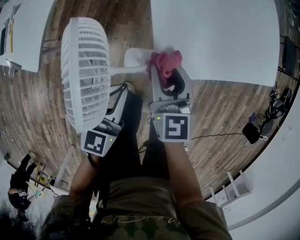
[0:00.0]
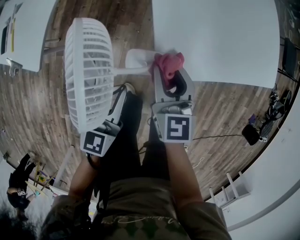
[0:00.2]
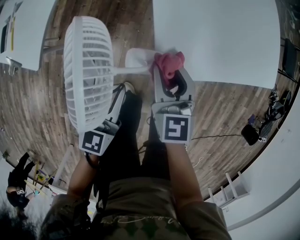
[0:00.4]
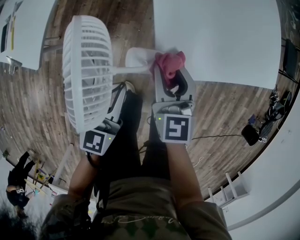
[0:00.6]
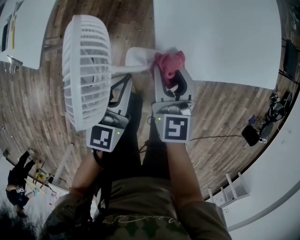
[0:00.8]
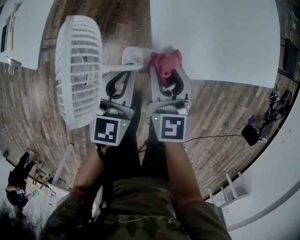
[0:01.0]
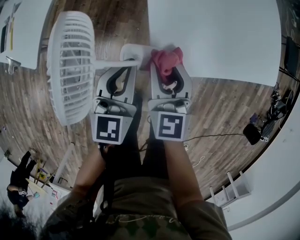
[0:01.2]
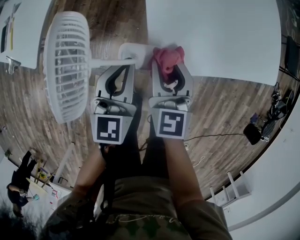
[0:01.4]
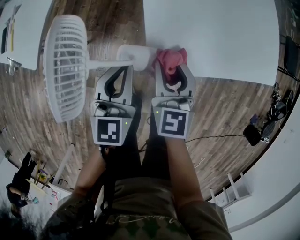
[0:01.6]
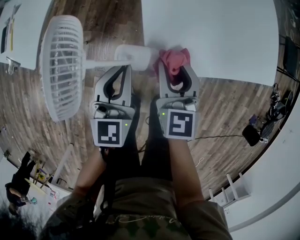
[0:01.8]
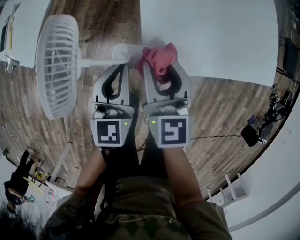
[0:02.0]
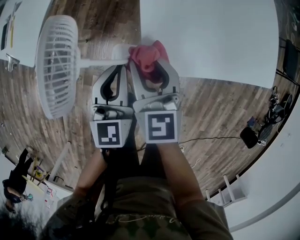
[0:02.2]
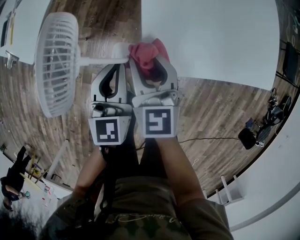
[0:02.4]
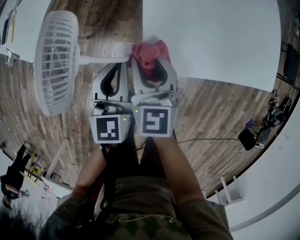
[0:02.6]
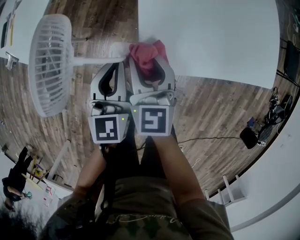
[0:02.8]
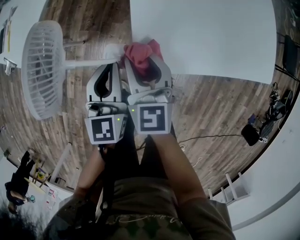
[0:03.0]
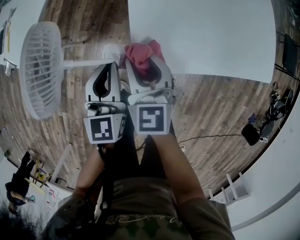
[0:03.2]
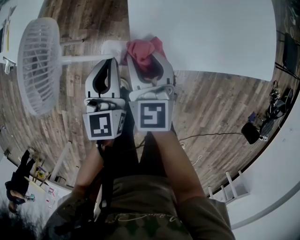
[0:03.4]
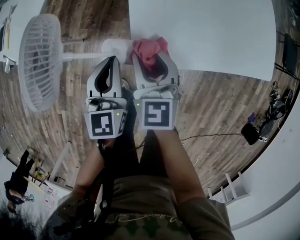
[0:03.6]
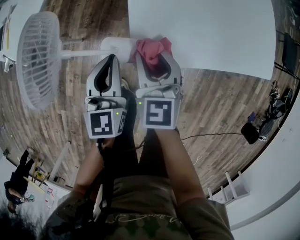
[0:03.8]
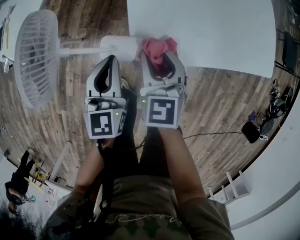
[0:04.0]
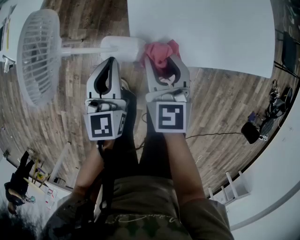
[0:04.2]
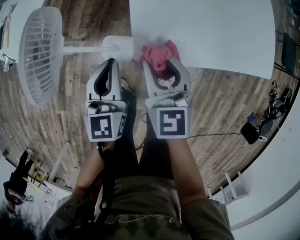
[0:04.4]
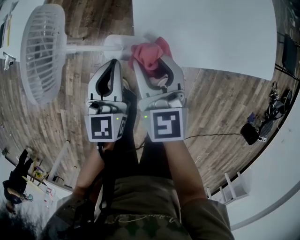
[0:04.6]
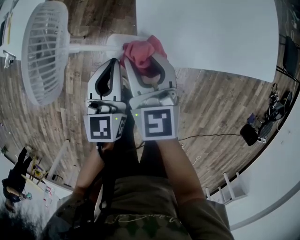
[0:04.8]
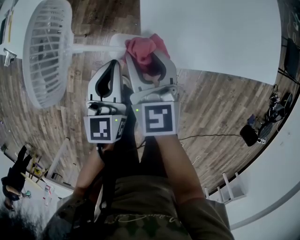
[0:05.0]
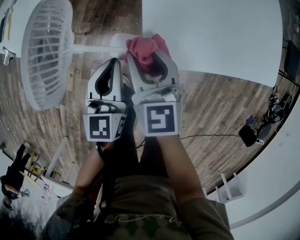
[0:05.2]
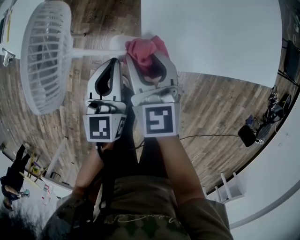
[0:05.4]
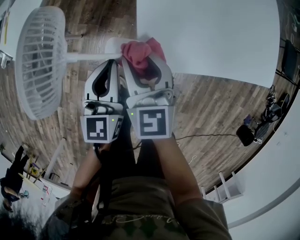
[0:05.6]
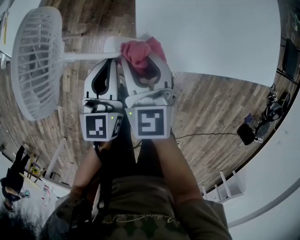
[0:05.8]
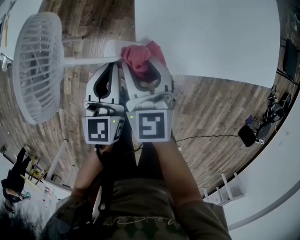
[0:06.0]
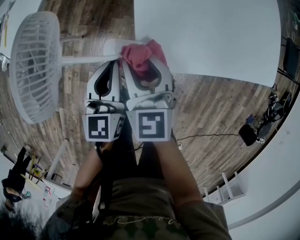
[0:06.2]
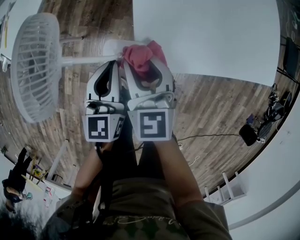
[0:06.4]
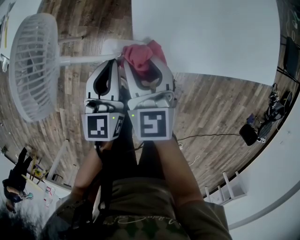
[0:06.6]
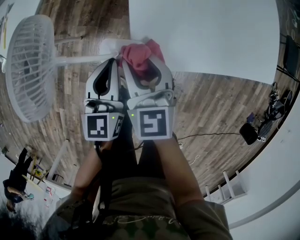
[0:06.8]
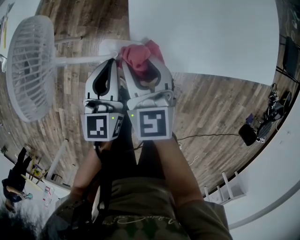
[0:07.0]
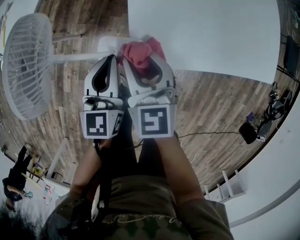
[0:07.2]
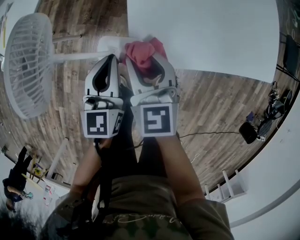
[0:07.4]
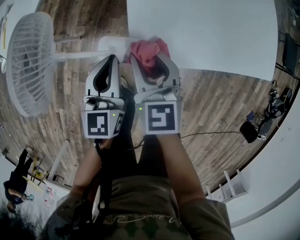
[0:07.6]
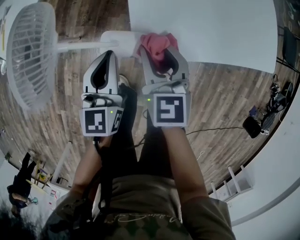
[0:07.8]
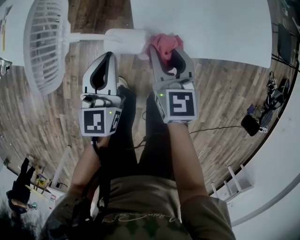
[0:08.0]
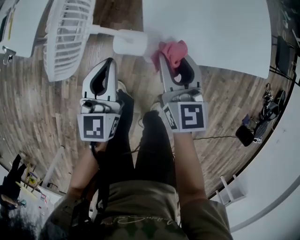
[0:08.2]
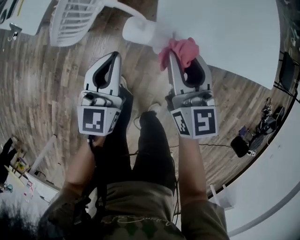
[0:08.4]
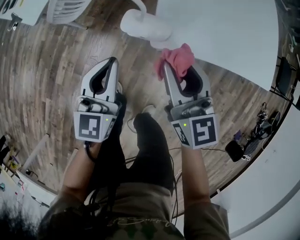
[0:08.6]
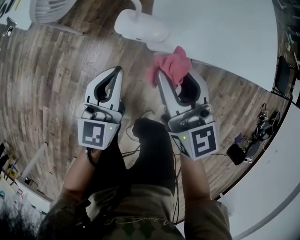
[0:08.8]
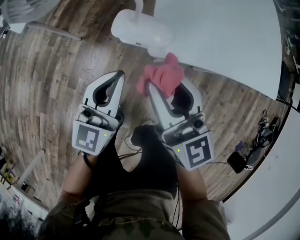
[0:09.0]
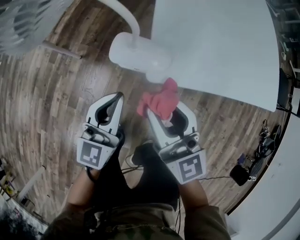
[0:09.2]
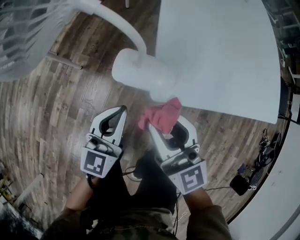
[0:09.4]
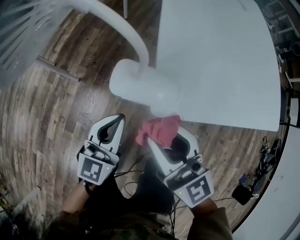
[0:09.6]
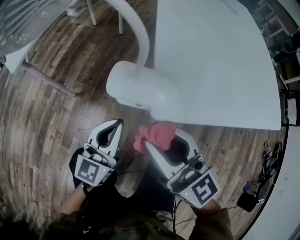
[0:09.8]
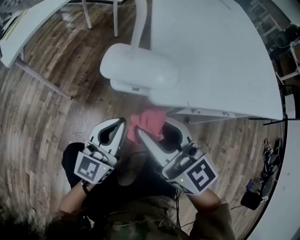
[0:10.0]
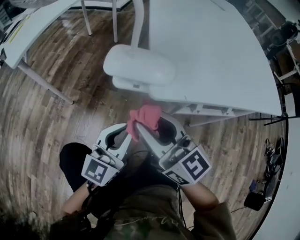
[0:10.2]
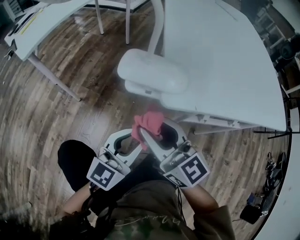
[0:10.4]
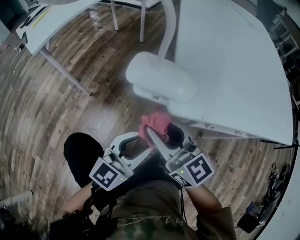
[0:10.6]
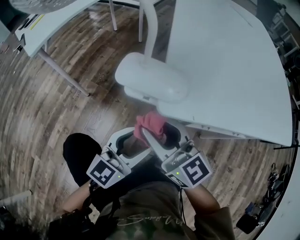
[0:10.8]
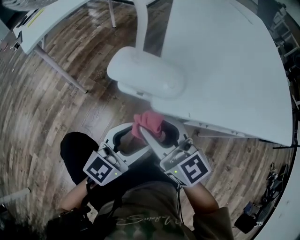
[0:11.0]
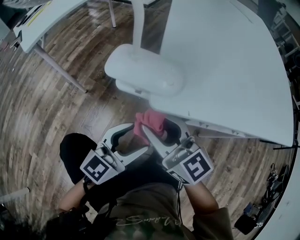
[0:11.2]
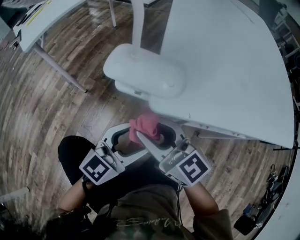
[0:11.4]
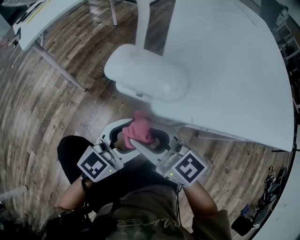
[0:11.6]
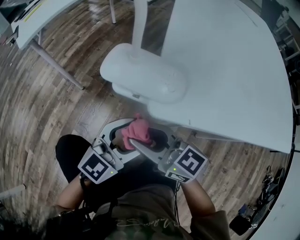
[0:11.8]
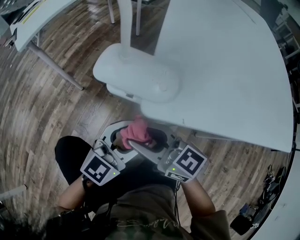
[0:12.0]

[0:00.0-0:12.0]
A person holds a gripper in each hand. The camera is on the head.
0:00.0 to 0:01.6: The left gripper goes approximately 5 cm forward.
0:01.6 to 0:03.0: The right gripper shifts by roughly 5 cm.
0:03.0 to 0:04.4: The right gripper shifts by approximately 5 cm.
0:04.4 to 0:06.0: The right gripper moves to the left, some 5 cm.
0:06.0 to 0:07.6: The grippers make only small movements.
0:07.6 to 0:09.0: Both grippers move backward, roughly 10 cm. The right gripper turns by some 30 degrees.
0:09.0 to 0:10.4: Both grippers move downward, about 15 cm. The left gripper opens up.
0:10.4 to 0:12.0: The left gripper opens its fingers. The right gripper shifts approximately 5 cm downward, and rotates some 30 degrees.

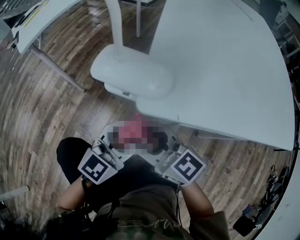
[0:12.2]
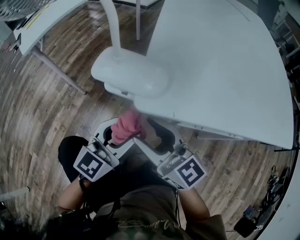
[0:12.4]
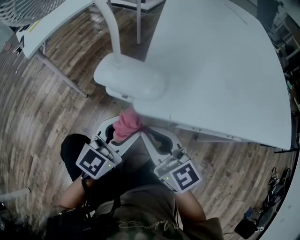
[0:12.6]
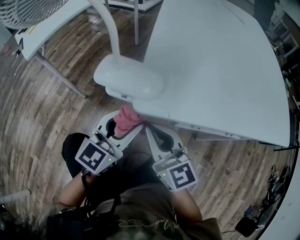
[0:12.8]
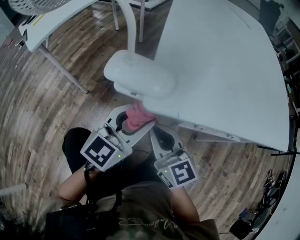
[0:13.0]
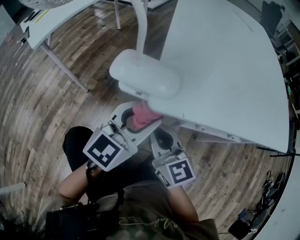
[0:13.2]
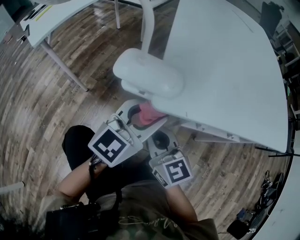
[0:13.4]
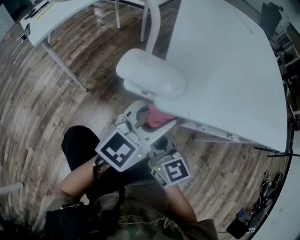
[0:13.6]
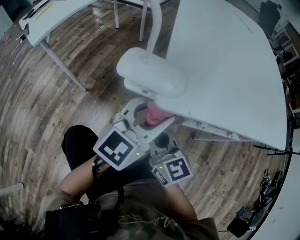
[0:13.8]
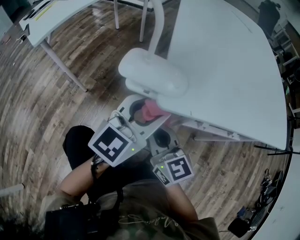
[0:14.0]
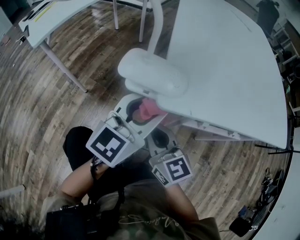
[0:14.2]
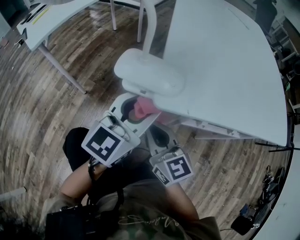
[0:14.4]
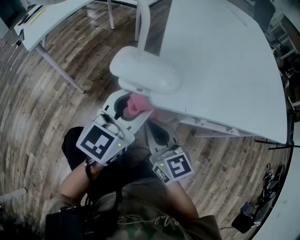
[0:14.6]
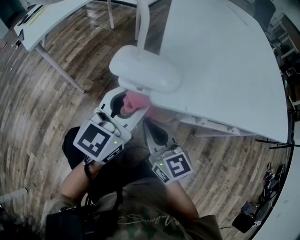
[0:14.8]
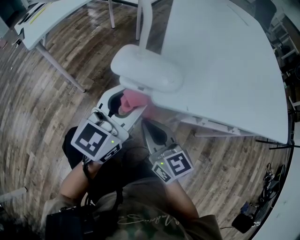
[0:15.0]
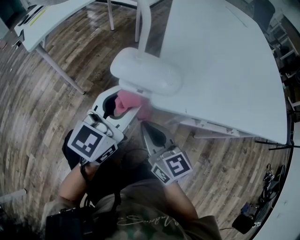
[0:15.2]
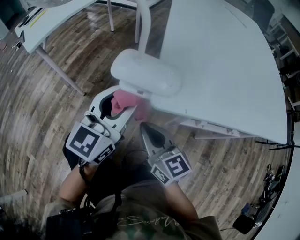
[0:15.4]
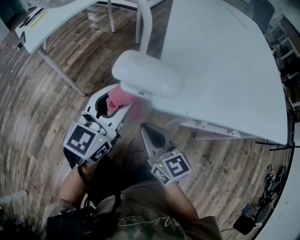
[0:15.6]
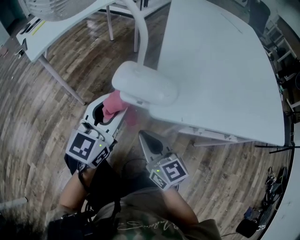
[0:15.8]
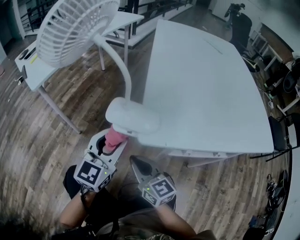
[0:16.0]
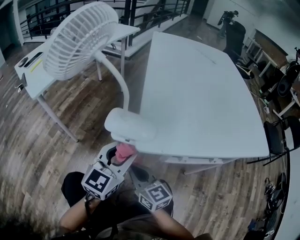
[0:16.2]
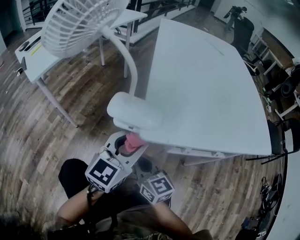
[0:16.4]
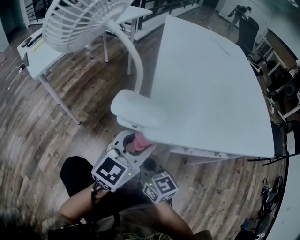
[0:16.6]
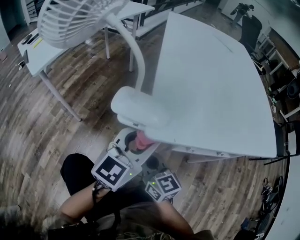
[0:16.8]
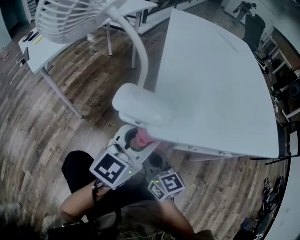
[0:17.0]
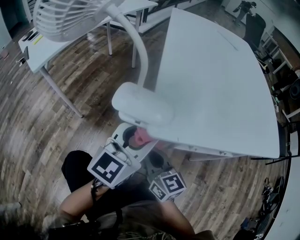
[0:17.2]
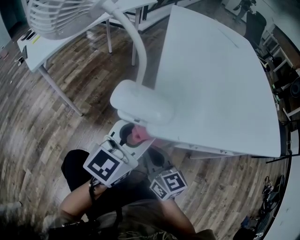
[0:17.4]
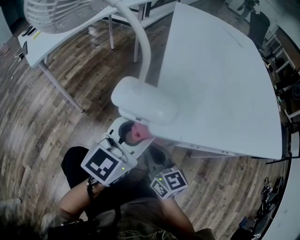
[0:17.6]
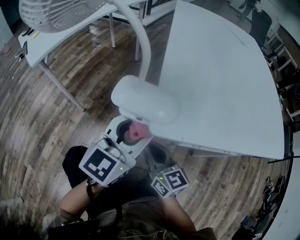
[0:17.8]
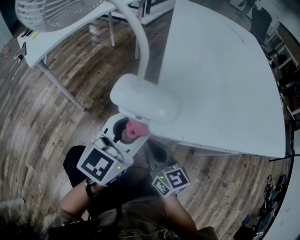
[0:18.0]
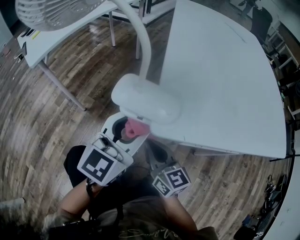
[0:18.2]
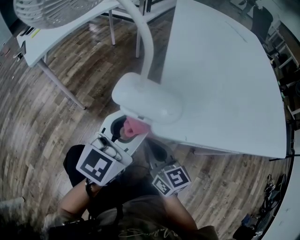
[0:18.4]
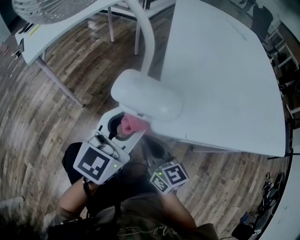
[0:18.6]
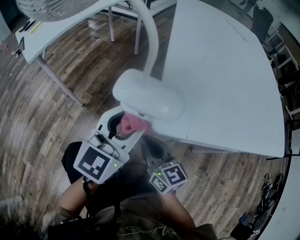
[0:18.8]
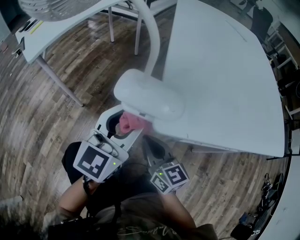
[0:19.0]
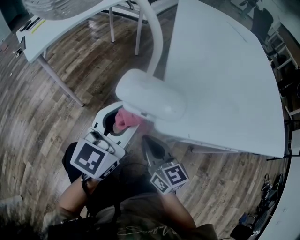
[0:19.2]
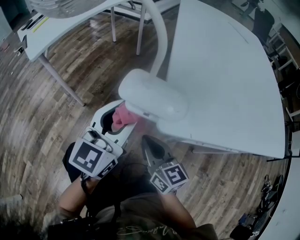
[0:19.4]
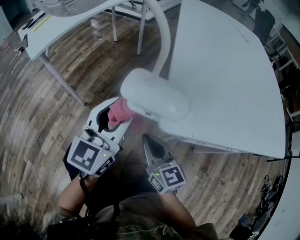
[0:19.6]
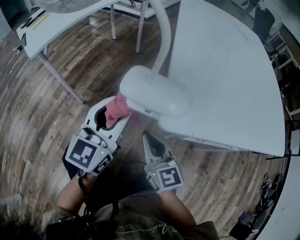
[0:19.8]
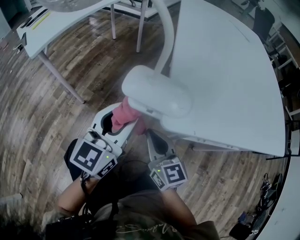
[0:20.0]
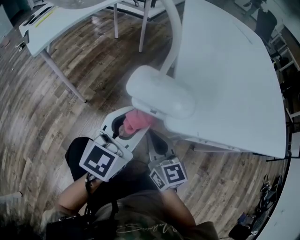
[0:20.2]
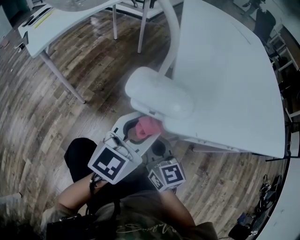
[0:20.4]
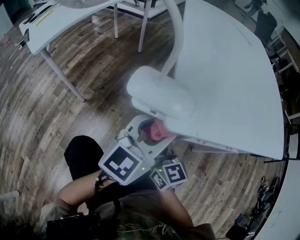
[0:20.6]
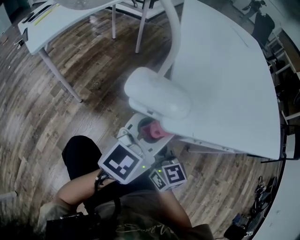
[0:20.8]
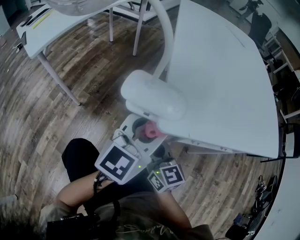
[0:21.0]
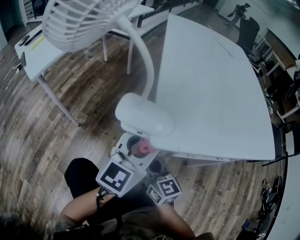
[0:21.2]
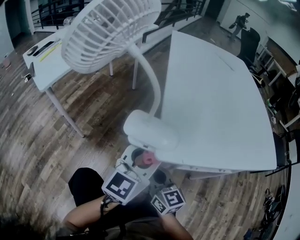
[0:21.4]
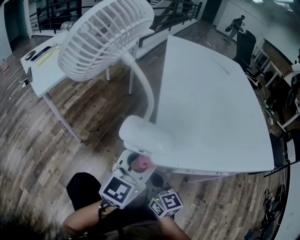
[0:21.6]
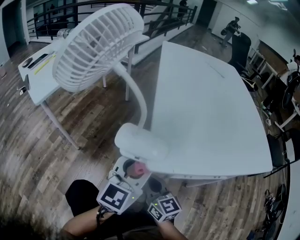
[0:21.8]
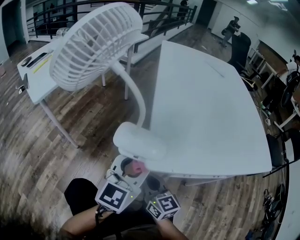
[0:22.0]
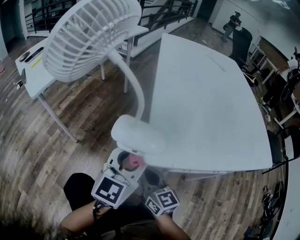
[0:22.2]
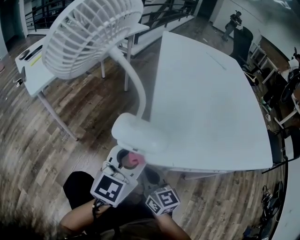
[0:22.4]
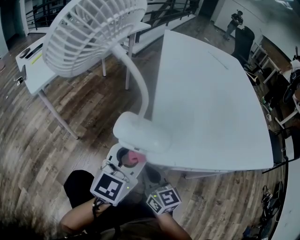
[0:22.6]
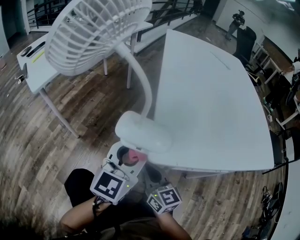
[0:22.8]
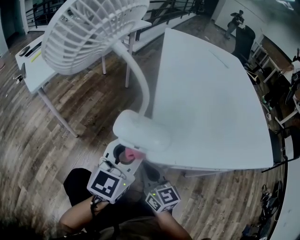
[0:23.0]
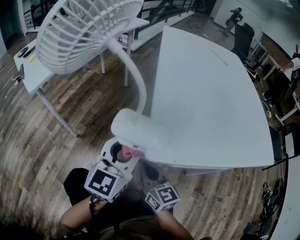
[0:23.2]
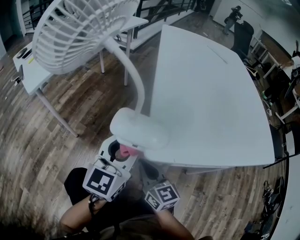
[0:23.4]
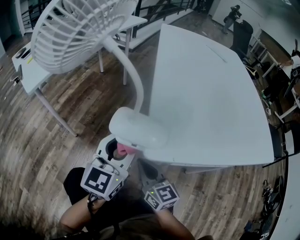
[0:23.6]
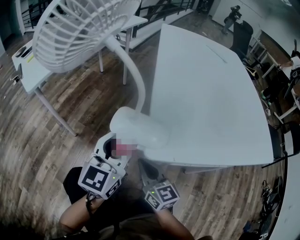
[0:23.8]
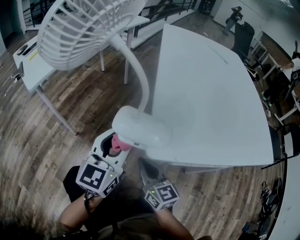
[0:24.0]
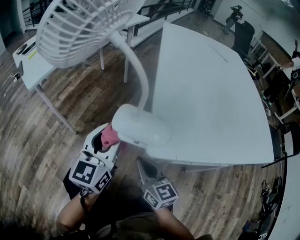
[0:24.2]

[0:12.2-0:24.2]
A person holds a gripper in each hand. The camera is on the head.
0:12.2 to 0:13.8: The left gripper shifts about 10 cm upward; the right gripper turns by some 30 degrees, and closes up.
0:13.8 to 0:15.2: The left gripper travels to the left by roughly 10 cm.
0:15.2 to 0:16.6: The left gripper goes approximately 5 cm to the right.
0:16.6 to 0:18.2: There are only small adjustments of the grippers.
0:18.2 to 0:19.8: The left gripper heads to the left, covering about 10 cm.
0:19.8 to 0:21.2: The left gripper goes approximately 10 cm to the right.
0:21.2 to 0:22.6: The grippers stay close to where they were, moving slightly.
0:22.6 to 0:24.2: The left gripper travels to the left by approximately 10 cm.
